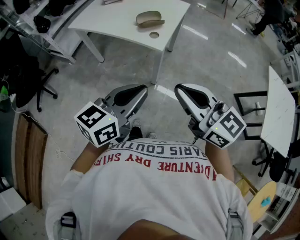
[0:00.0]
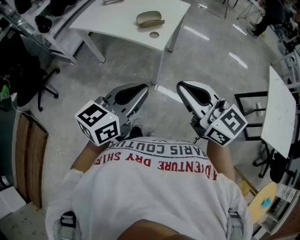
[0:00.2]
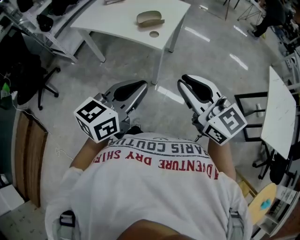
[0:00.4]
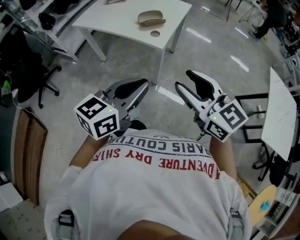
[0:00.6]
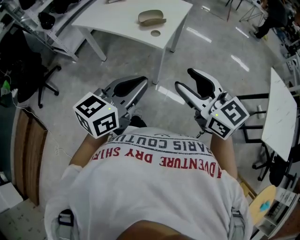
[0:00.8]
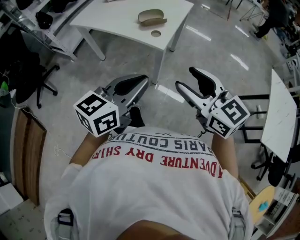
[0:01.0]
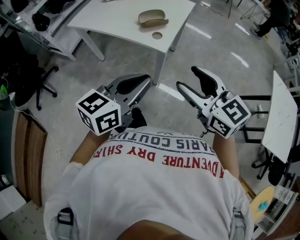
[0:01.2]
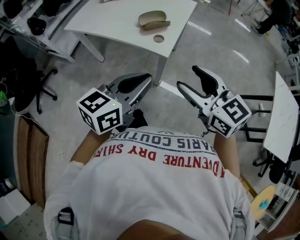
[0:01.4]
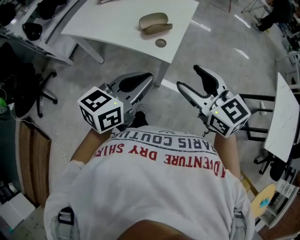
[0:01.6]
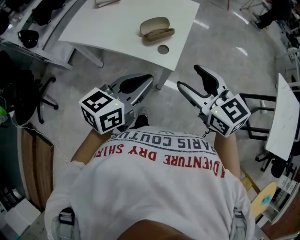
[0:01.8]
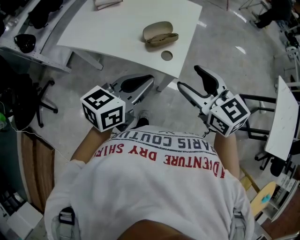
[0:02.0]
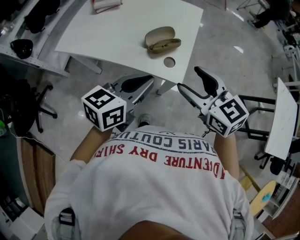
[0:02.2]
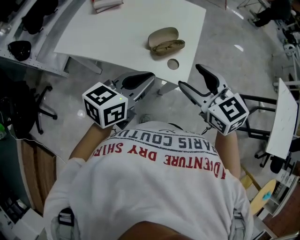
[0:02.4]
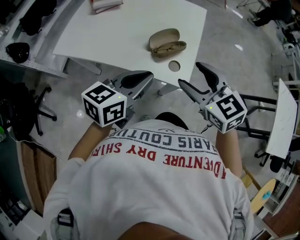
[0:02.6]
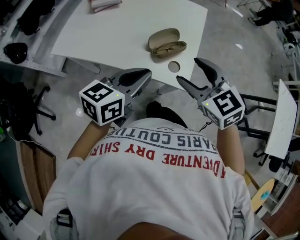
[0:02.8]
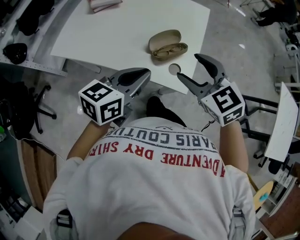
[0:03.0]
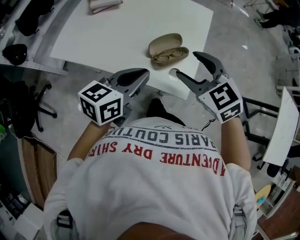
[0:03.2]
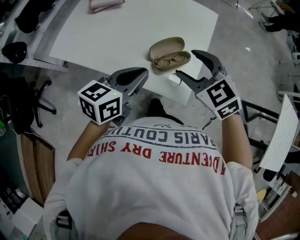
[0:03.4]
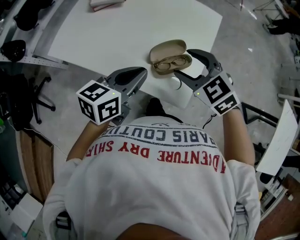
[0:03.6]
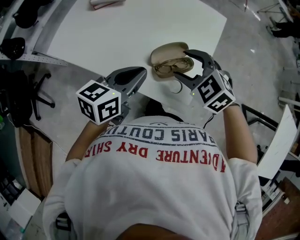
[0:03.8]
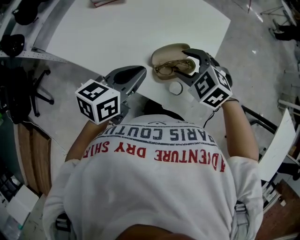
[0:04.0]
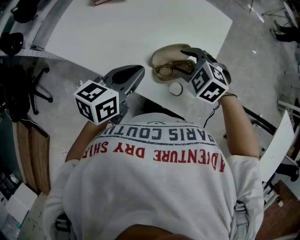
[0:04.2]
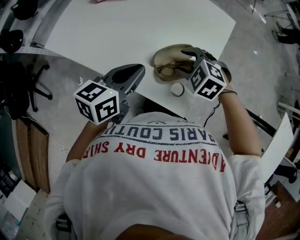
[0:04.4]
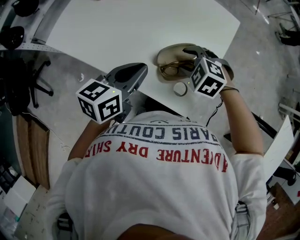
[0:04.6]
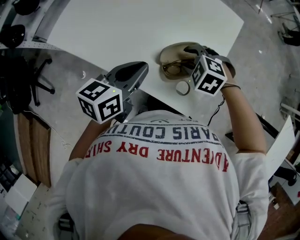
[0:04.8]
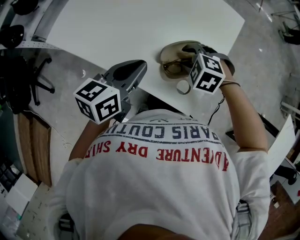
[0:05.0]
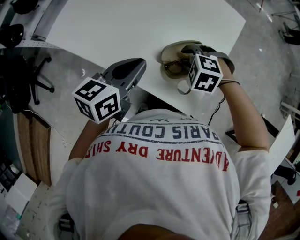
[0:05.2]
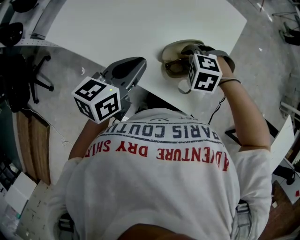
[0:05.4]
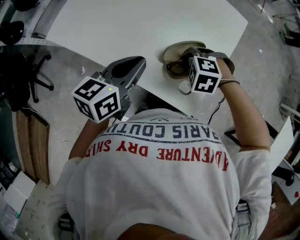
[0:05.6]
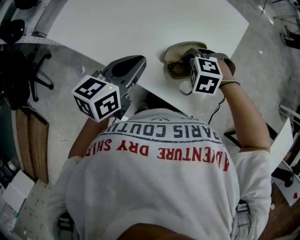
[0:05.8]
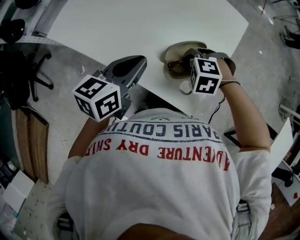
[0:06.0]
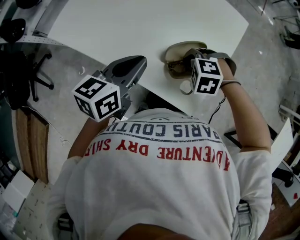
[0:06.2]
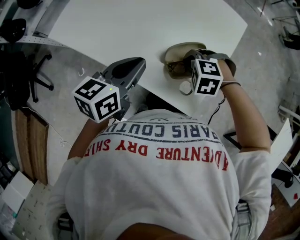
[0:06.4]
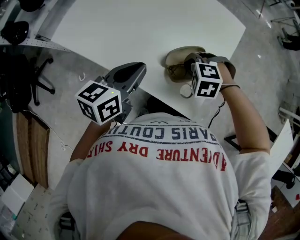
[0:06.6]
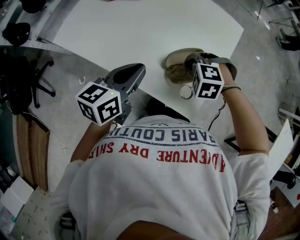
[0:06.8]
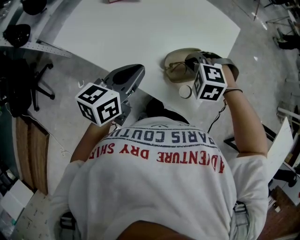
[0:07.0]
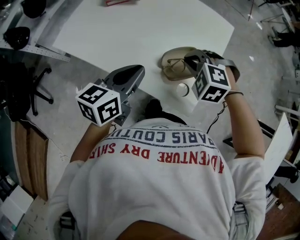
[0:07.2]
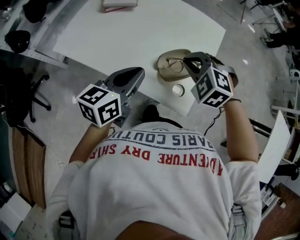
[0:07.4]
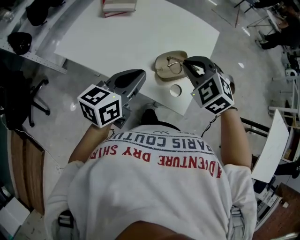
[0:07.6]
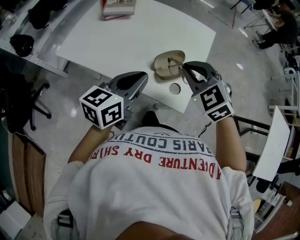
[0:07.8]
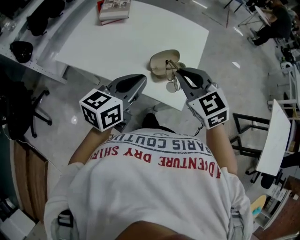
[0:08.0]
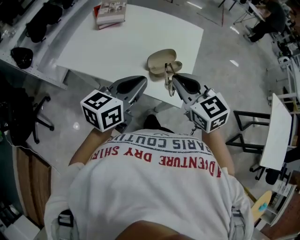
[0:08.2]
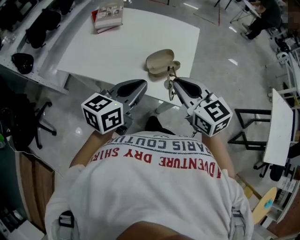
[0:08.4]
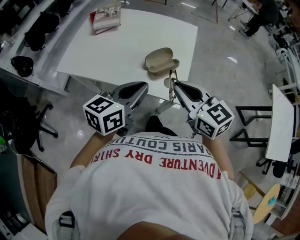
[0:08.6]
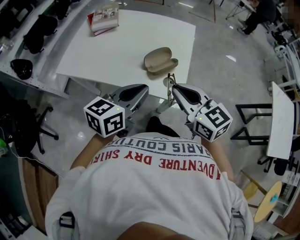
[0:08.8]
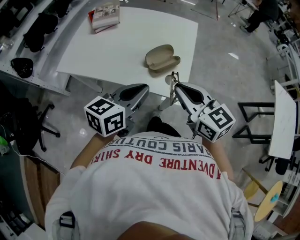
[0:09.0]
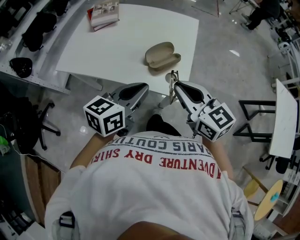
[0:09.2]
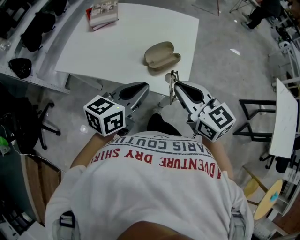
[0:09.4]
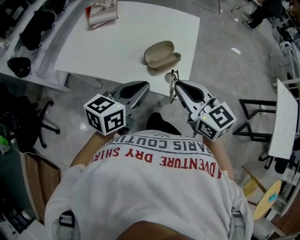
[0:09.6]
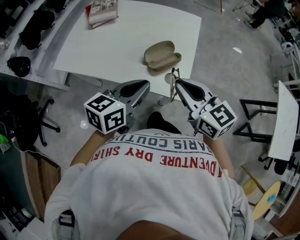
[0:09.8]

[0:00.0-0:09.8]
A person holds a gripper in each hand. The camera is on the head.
0:00.0 to 0:01.4: The two grippers go some 10 cm forward. The right gripper opens.
0:01.4 to 0:02.8: The two grippers go roughly 25 cm forward and to the left. The right gripper rotates some 20 degrees.
0:02.8 to 0:04.2: The left gripper shifts roughly 15 cm forward and downward; the right gripper heads forward and downward, covering some 20 cm, and changes its angle by about 40 degrees.
0:04.2 to 0:05.6: The right gripper shifts approximately 5 cm downward, rotates roughly 30 degrees, and closes.
0:05.6 to 0:07.0: The right gripper goes about 5 cm upward.
0:07.0 to 0:08.4: The right gripper shifts about 25 cm upward and backward, and angles its fingers upward, by roughly 50 degrees, while the left gripper goes approximately 15 cm backward, upward and to the right.
0:08.4 to 0:09.8: The grippers move only a little.

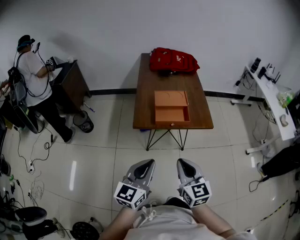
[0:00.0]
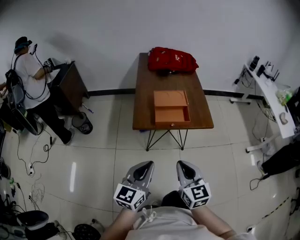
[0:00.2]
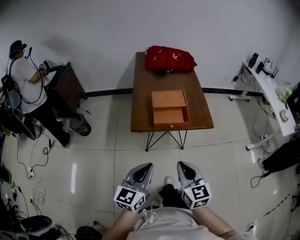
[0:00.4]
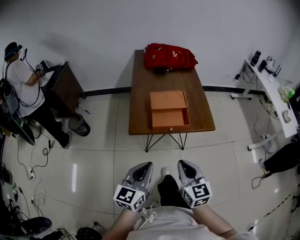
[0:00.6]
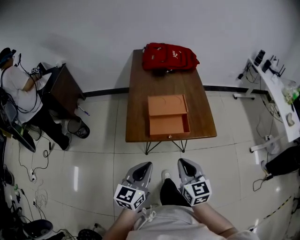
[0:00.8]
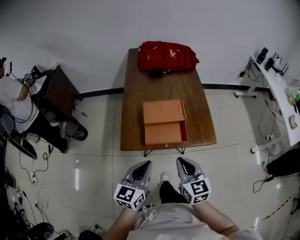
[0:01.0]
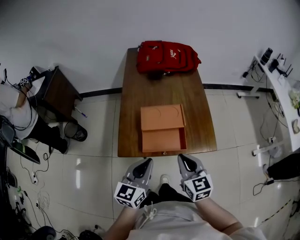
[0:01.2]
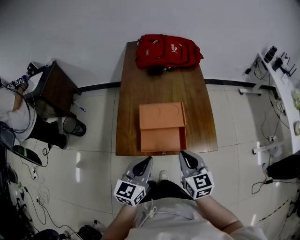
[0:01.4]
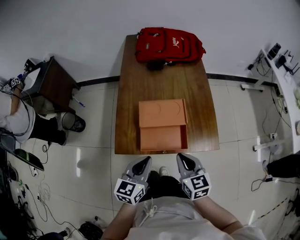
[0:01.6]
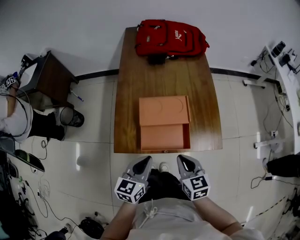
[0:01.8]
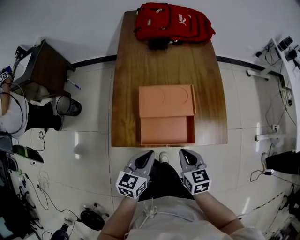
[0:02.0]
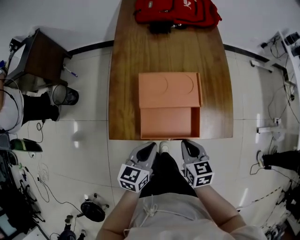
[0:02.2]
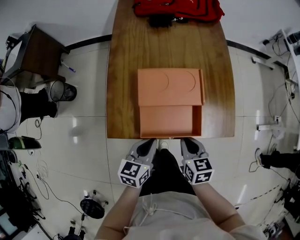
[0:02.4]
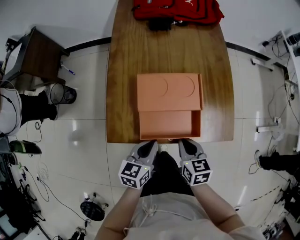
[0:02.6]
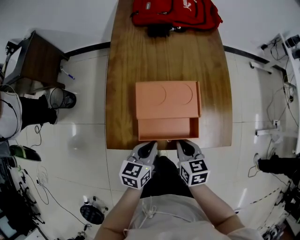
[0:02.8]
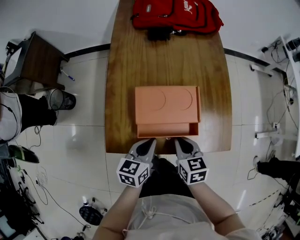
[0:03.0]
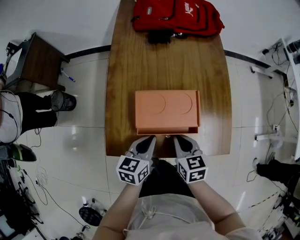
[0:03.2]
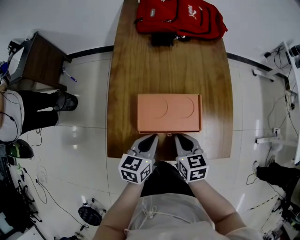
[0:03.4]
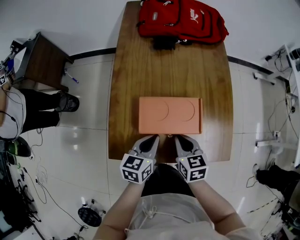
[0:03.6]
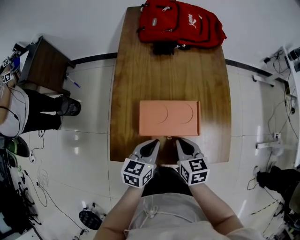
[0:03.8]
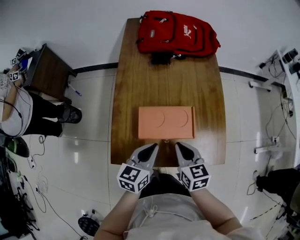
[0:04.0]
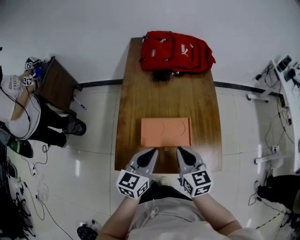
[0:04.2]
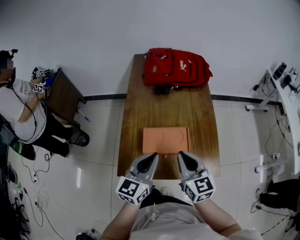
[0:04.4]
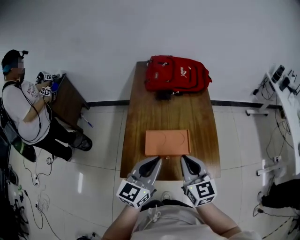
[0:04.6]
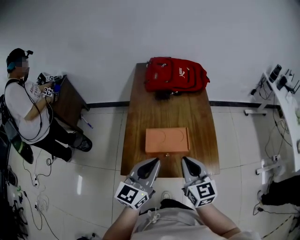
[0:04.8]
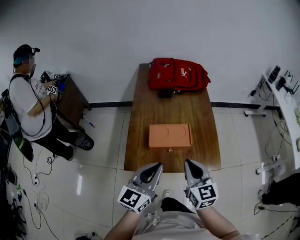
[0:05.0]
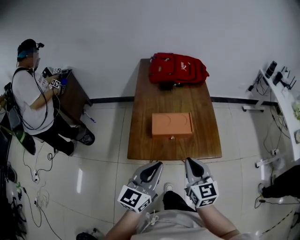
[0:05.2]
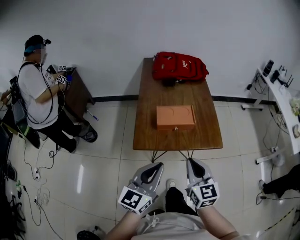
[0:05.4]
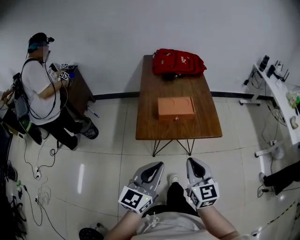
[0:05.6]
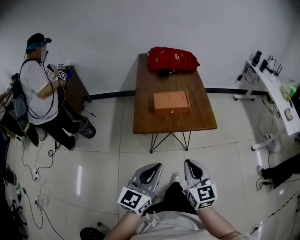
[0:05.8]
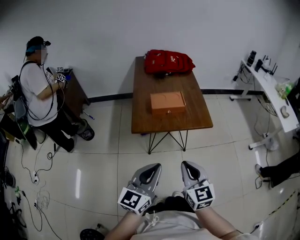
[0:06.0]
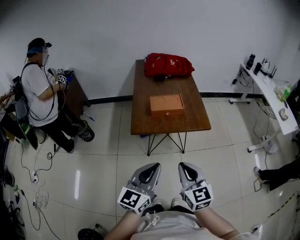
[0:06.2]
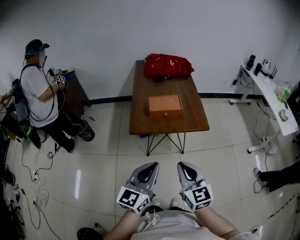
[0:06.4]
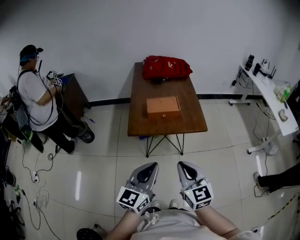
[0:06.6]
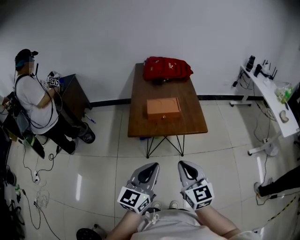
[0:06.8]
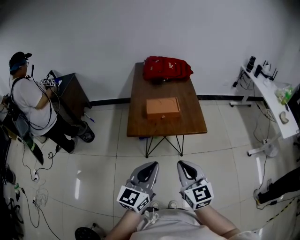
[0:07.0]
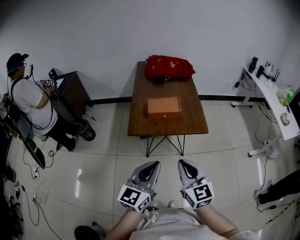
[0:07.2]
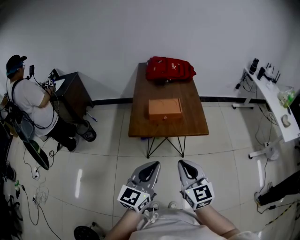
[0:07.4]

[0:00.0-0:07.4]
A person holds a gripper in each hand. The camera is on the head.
0:00.0 to 0:01.4: Both grippers travel together forward, about 30 cm.
0:01.4 to 0:03.0: Both grippers move downward and forward, some 20 cm. The left gripper changes its angle by some 20 degrees. Meanwhile the right gripper changes its angle by about 20 degrees.
0:03.0 to 0:04.4: The grippers both shift upward by about 20 cm. The right gripper changes its angle by roughly 30 degrees, while the left gripper turns by about 30 degrees.
0:04.4 to 0:06.0: The two grippers travel together, backward, roughly 40 cm.
0:06.0 to 0:07.4: The right gripper shifts by about 5 cm, while the left gripper changes place by approximately 5 cm.

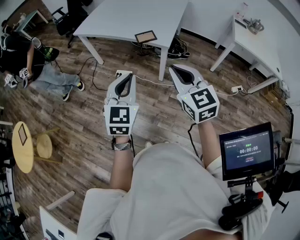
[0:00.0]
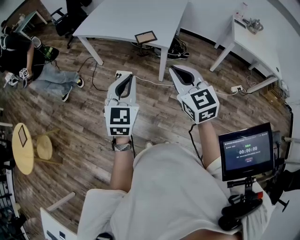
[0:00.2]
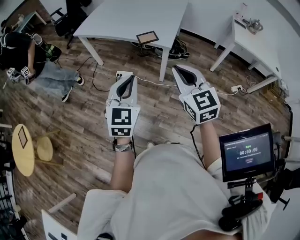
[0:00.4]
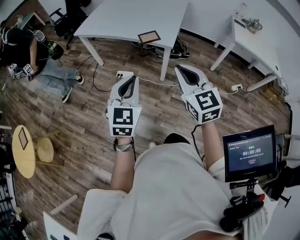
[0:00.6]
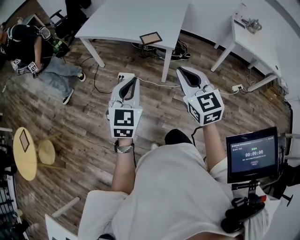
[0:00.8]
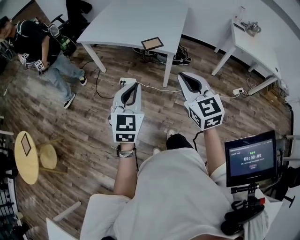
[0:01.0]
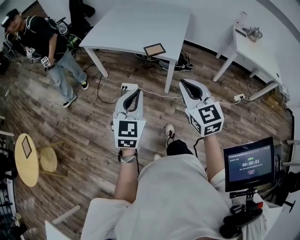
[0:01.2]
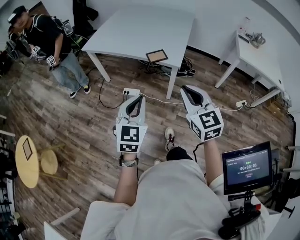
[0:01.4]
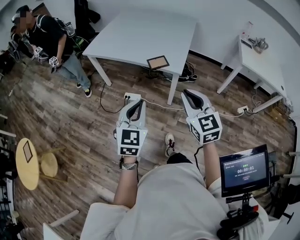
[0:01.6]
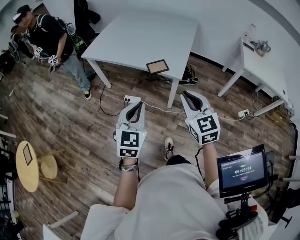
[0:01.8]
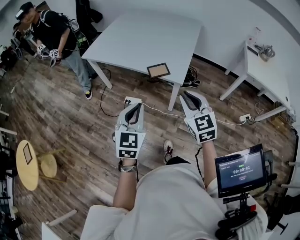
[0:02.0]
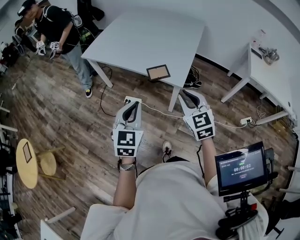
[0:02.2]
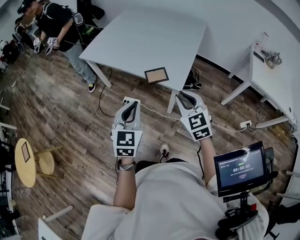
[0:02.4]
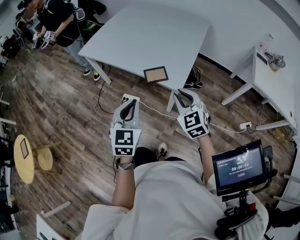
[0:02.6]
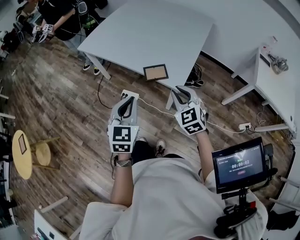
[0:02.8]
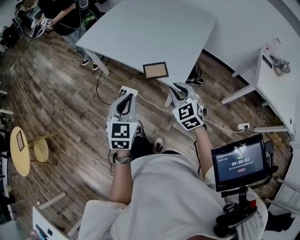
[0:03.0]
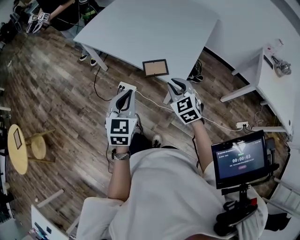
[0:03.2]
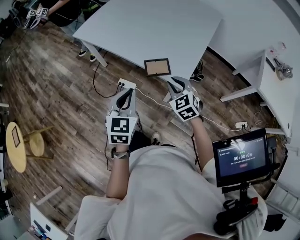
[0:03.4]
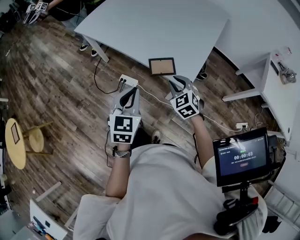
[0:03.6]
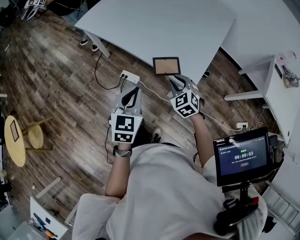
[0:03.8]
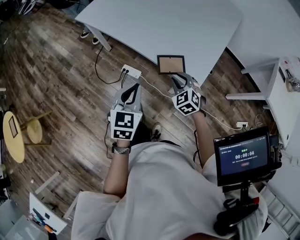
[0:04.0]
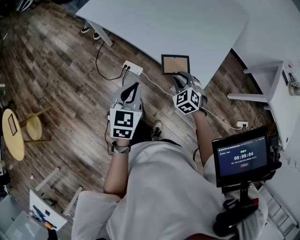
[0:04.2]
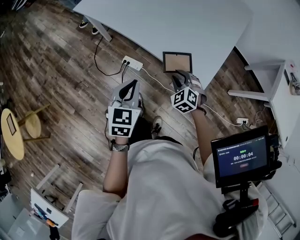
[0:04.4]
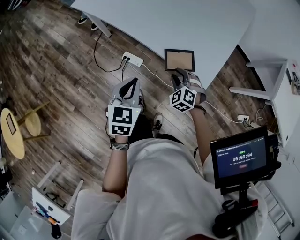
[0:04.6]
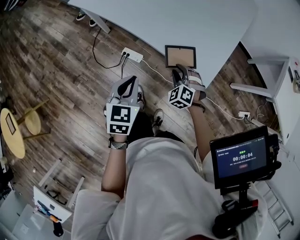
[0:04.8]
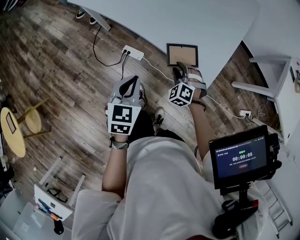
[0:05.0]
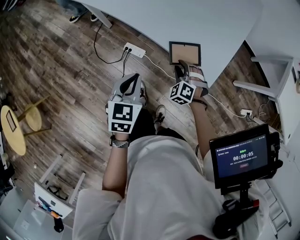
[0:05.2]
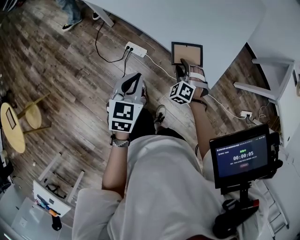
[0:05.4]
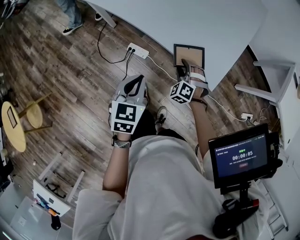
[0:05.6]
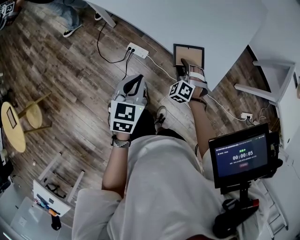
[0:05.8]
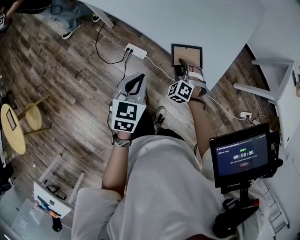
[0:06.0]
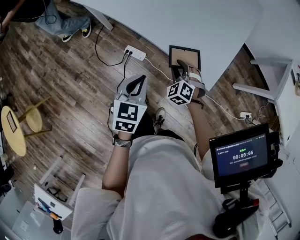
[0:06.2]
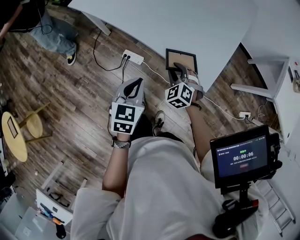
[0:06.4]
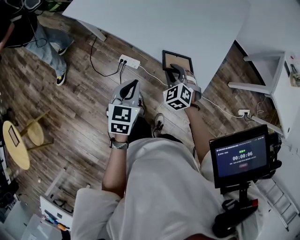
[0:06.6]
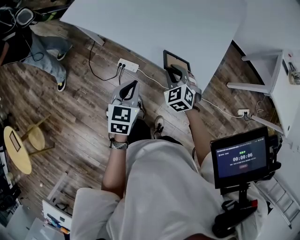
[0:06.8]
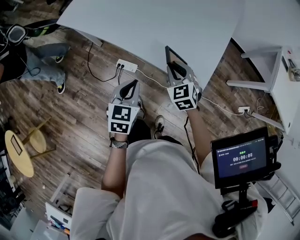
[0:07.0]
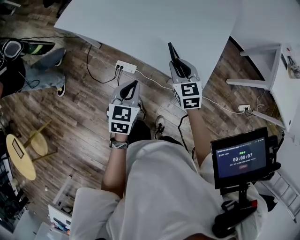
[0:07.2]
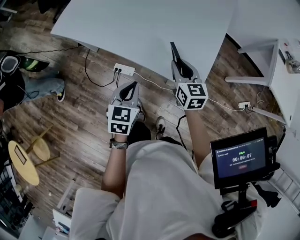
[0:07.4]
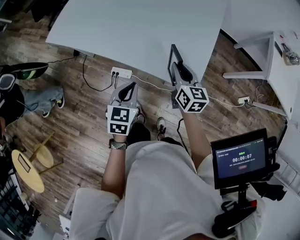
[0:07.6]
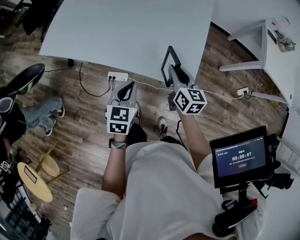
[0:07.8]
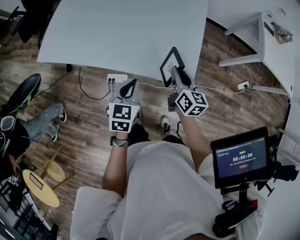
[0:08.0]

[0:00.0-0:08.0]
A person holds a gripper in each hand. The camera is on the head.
0:00.0 to 0:01.6: The right gripper changes place by some 5 cm; the left gripper shifts by about 5 cm.
0:01.6 to 0:03.2: The left gripper travels forward by approximately 25 cm, while the right gripper shifts approximately 35 cm forward and downward, and rotates some 30 degrees.
0:03.2 to 0:04.8: The left gripper travels downward, forward and to the left by some 20 cm, while the right gripper shifts about 25 cm downward and forward, and rotates approximately 30 degrees.
0:04.8 to 0:06.4: There are only small adjustments of the grippers.
0:06.4 to 0:08.0: The left gripper moves forward and to the right, about 10 cm, while the right gripper moves to the right, upward and forward, about 15 cm, and rotates around the line of its fingers by some 80 degrees, clockwise from behind.
